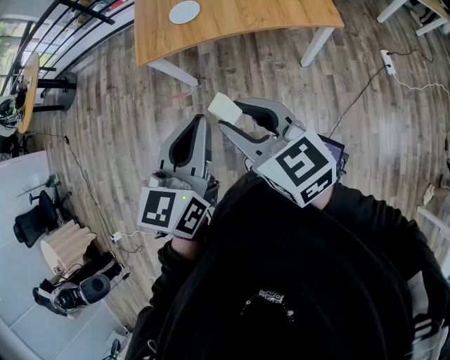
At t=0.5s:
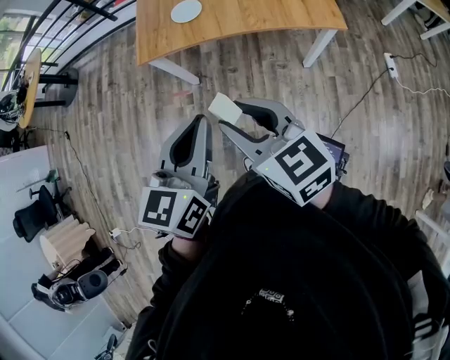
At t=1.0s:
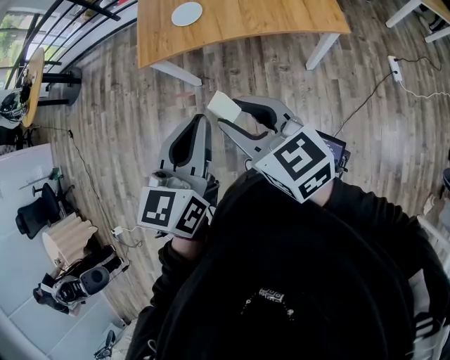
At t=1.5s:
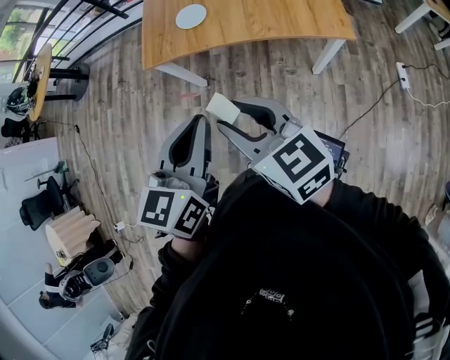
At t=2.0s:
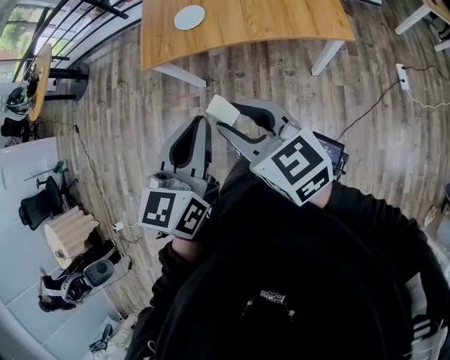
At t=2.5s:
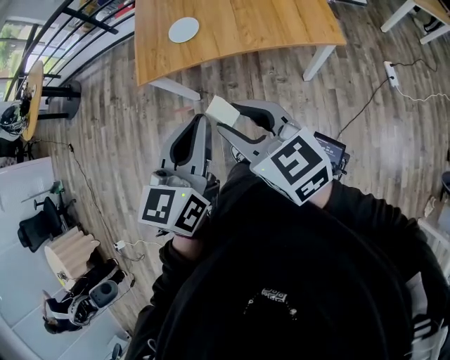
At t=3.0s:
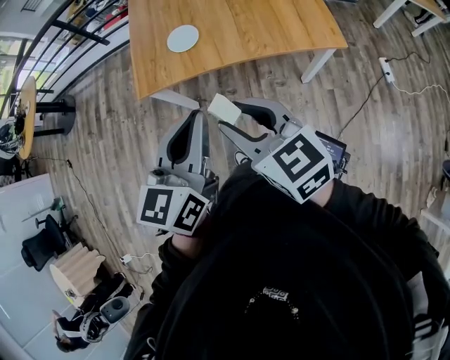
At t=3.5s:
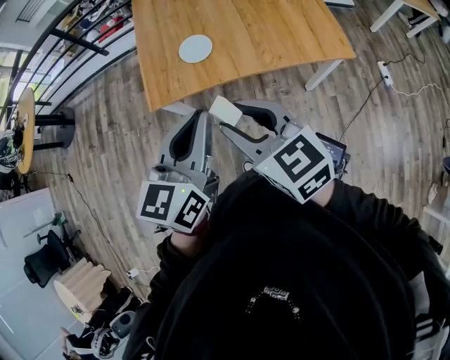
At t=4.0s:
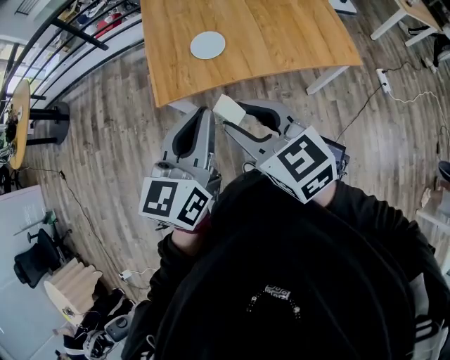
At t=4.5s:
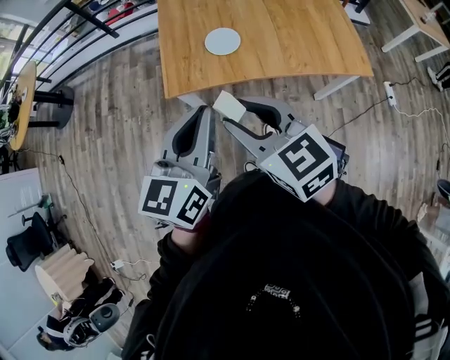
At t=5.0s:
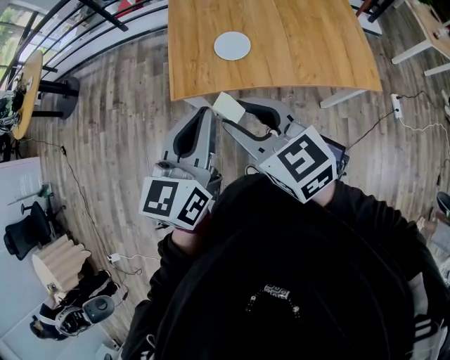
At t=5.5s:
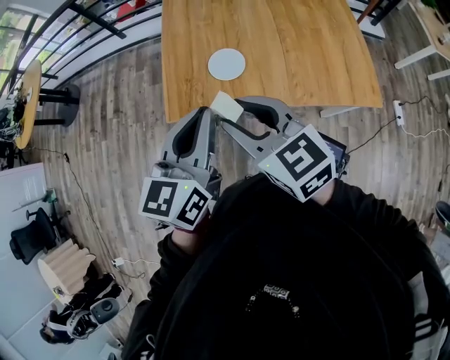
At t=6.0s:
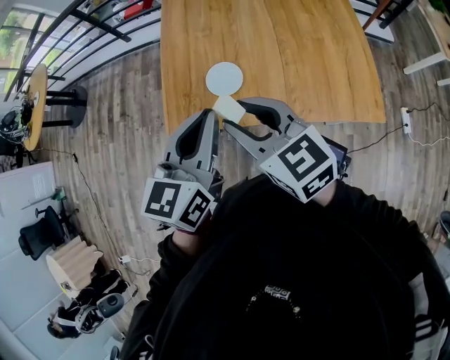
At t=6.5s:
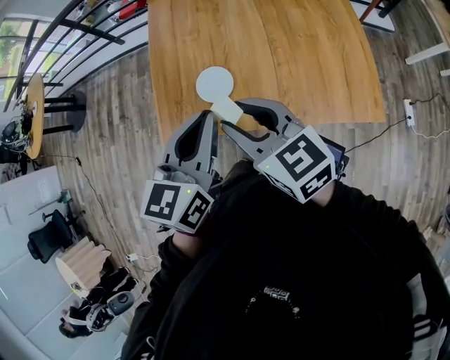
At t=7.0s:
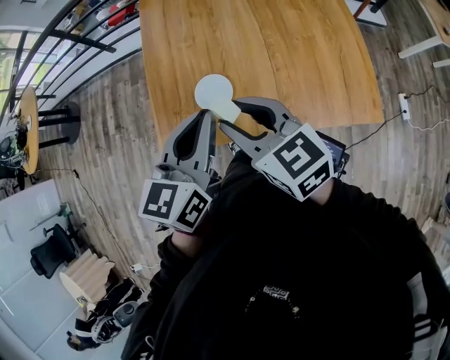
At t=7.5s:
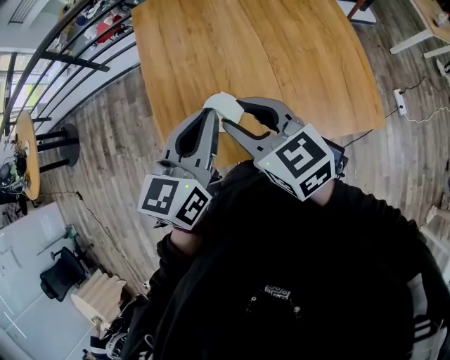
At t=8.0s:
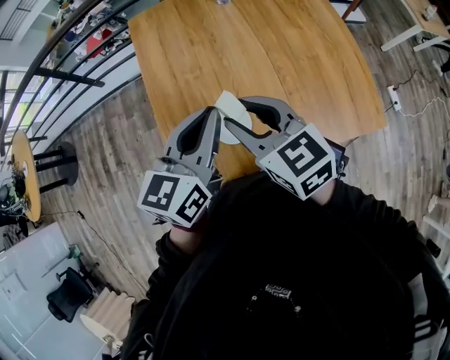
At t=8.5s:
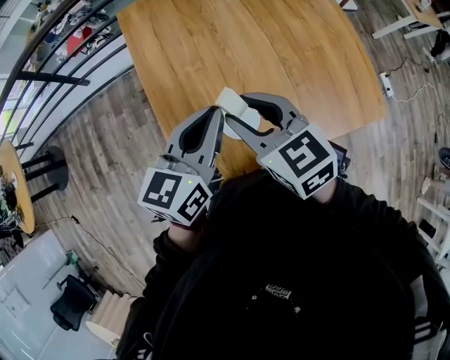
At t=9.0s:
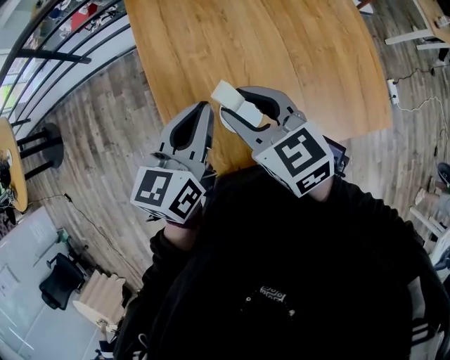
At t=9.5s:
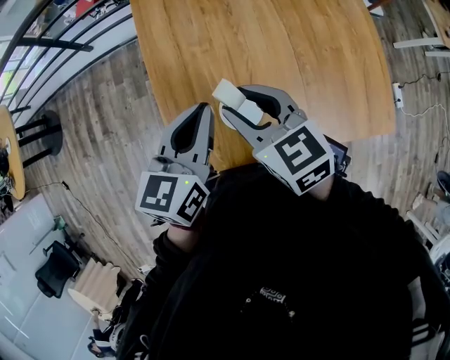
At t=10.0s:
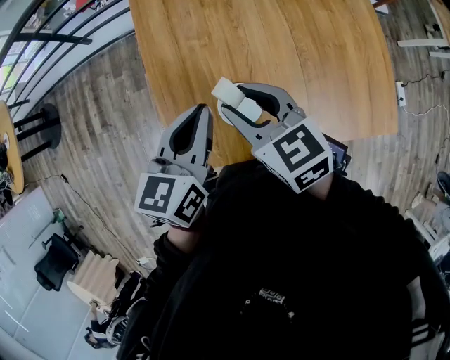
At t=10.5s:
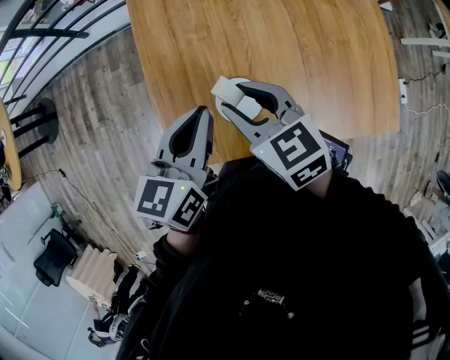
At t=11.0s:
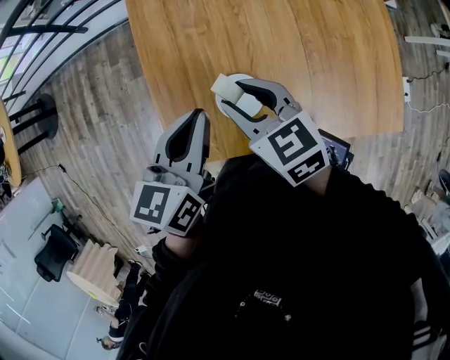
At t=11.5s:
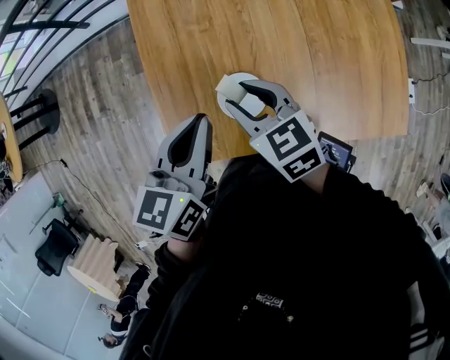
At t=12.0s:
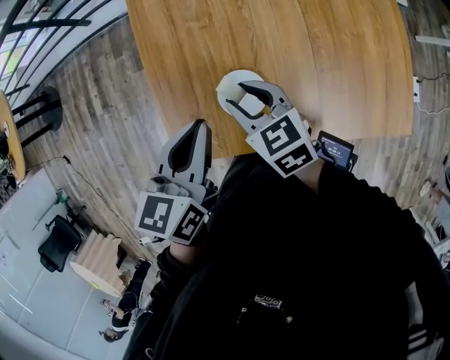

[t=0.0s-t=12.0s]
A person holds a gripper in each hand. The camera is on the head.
t=0.0s to t=2.0s: The two grippers go about 5 cm to the right.
t=2.0s to t=4.0s: Both grippers move forward and to the left, about 20 cm.
t=4.0s to t=6.0s: Both grippers move forward and to the right, roughly 20 cm.
t=6.0s to t=8.0s: Both grippers move forward, about 20 cm.
t=8.0s to t=10.0s: Both grippers travel together downward, roughly 5 cm.
t=10.0s to t=12.0s: The left gripper changes place by roughly 5 cm. Meanwhile the right gripper is displaced downward by some 10 cm.

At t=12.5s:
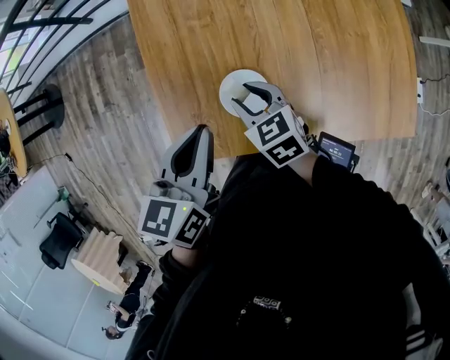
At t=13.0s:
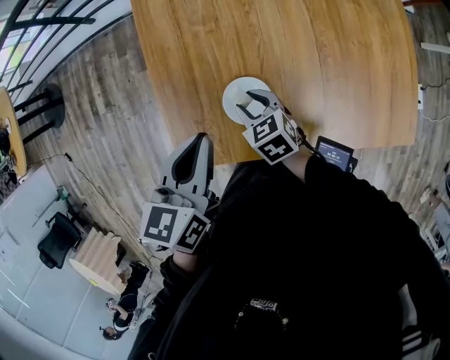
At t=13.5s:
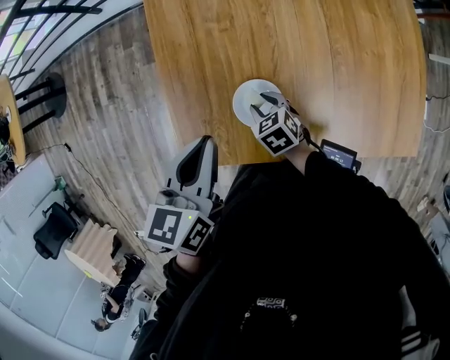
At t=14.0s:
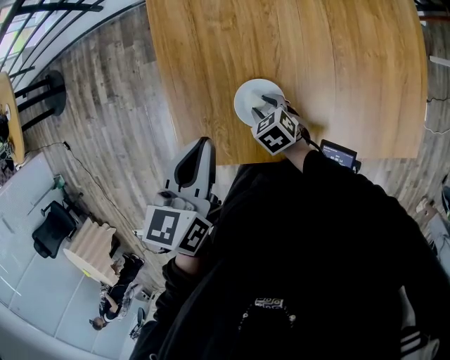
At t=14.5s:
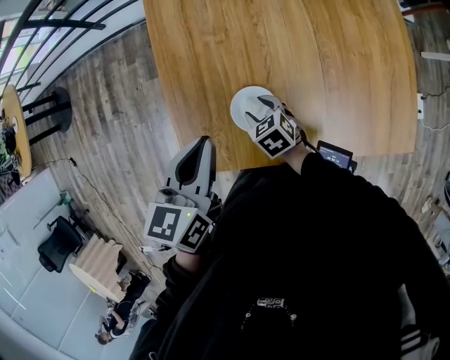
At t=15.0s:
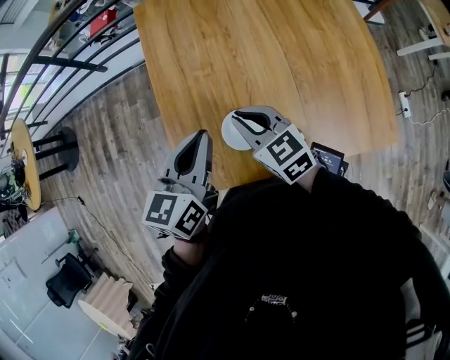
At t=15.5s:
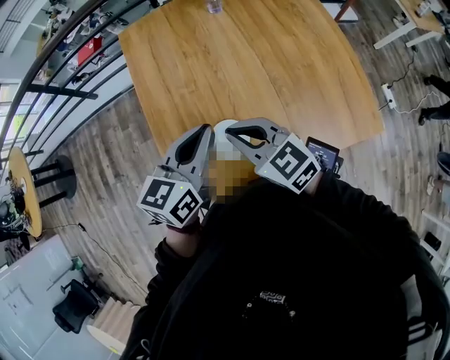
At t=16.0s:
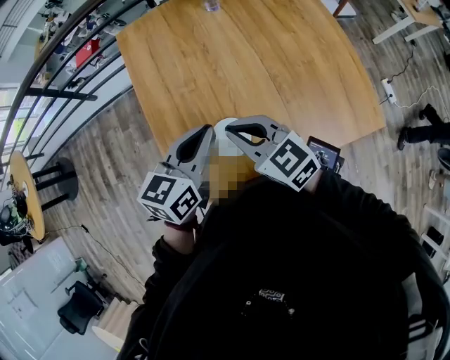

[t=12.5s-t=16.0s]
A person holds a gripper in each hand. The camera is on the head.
t=12.5s to t=14.5s: The right gripper moves downward, some 10 cm.
t=14.5s to t=16.0s: The left gripper is displaced to the right by approximately 10 cm, and changes its angle by about 30 degrees. Meanwhile the right gripper heads upward, covering about 25 cm, tips its fingers upward by about 40 degrees, and closes its fingers.

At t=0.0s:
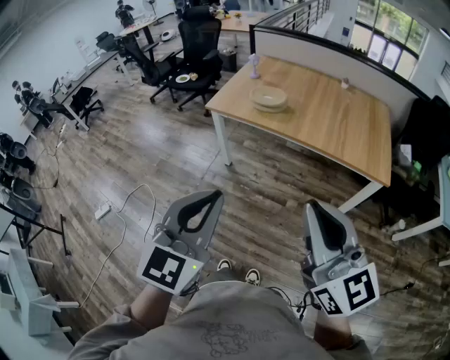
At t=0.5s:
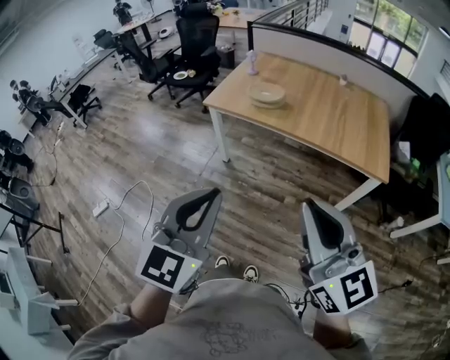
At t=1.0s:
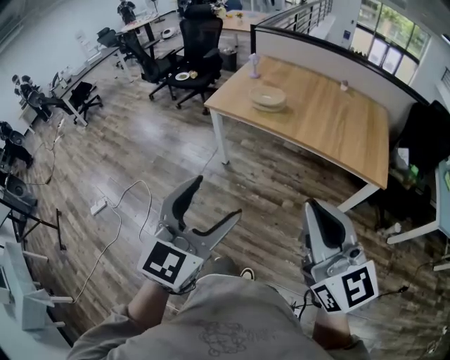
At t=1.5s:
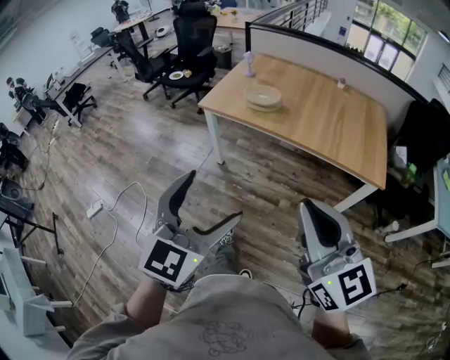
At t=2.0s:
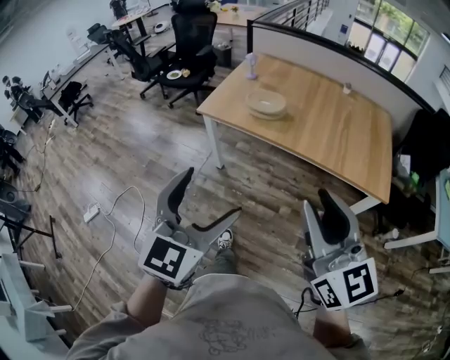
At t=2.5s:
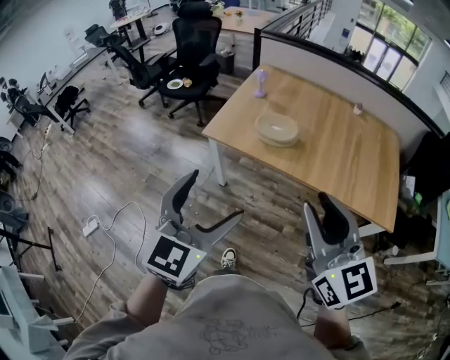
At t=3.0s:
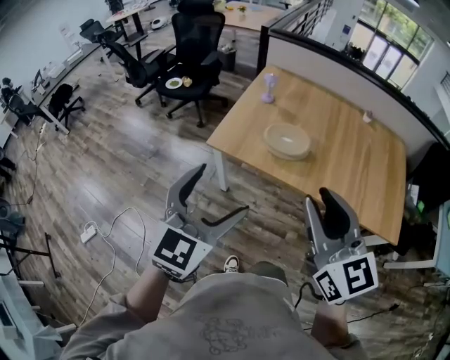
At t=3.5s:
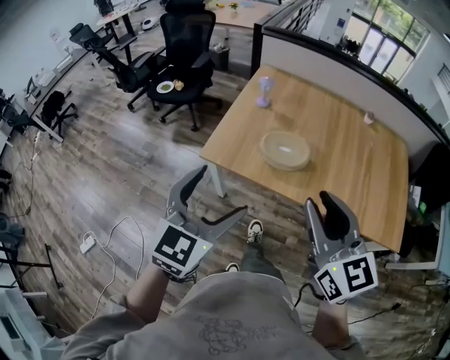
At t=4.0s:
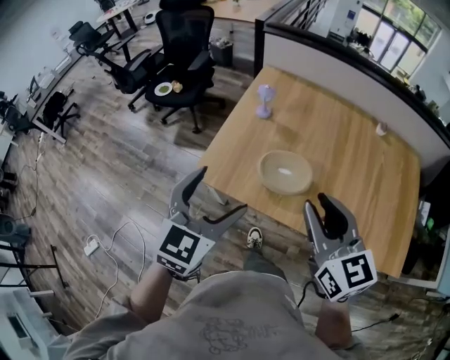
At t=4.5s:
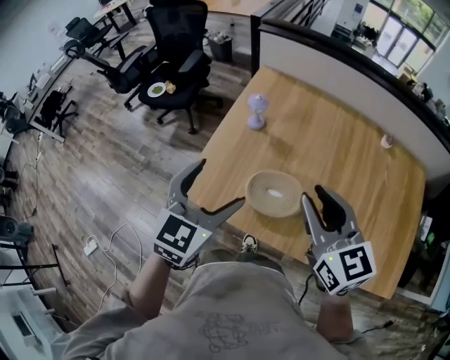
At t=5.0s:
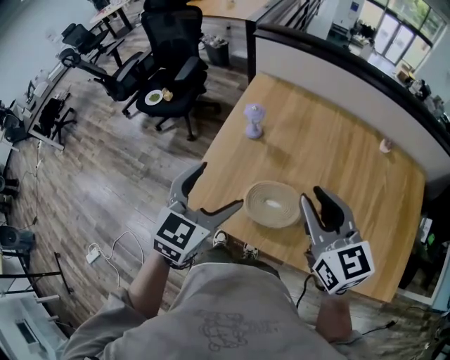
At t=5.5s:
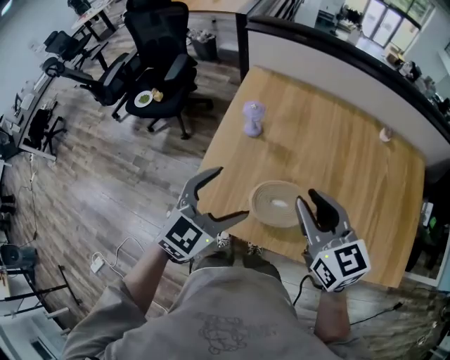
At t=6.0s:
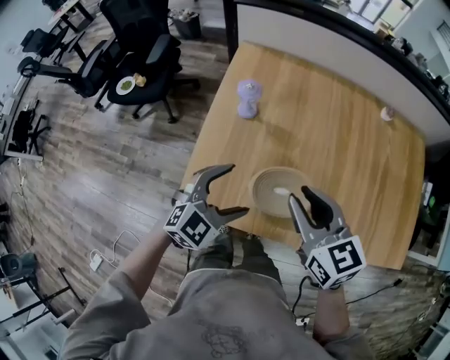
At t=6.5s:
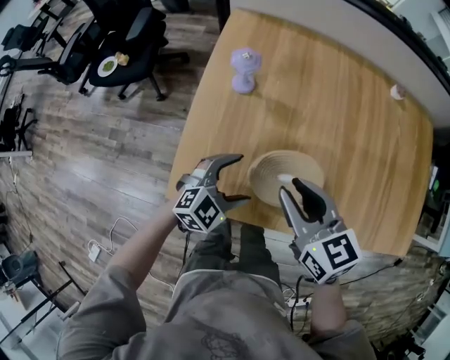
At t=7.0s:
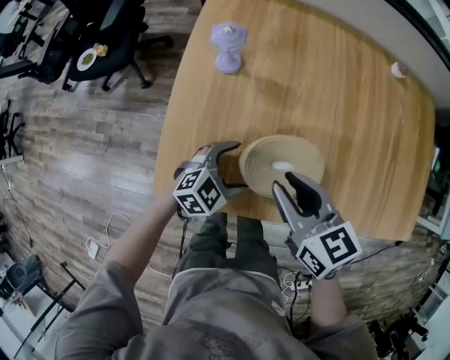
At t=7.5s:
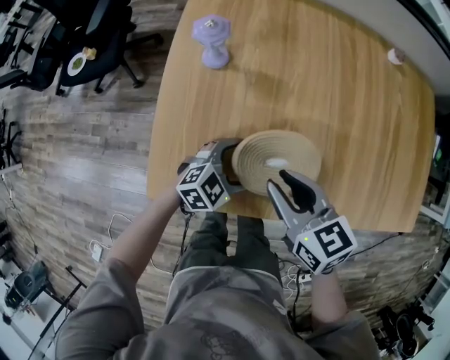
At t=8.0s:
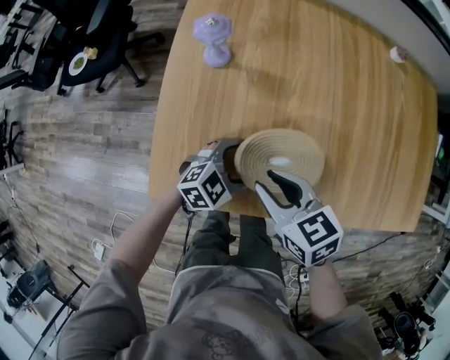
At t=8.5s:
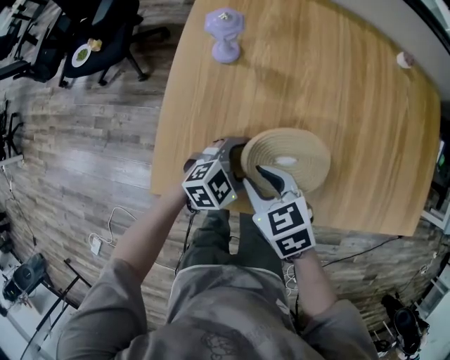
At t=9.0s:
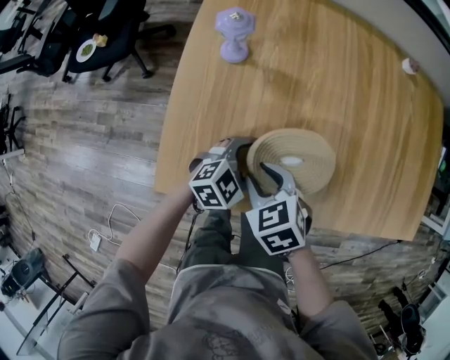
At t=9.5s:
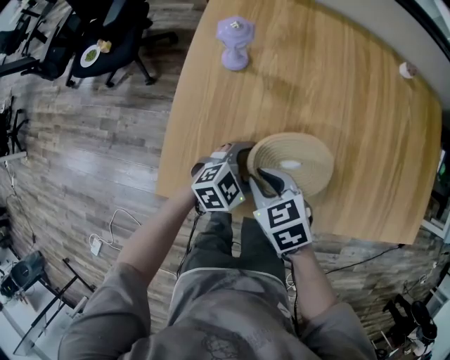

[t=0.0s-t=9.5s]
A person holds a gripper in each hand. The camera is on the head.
t=0.0s to t=2.0s: Both grippers travel together forward, roughly 15 cm. The left gripper opens up; the right gripper opens.
t=2.0s to t=4.0s: The pair of grippers is taken forward, about 50 cm.
t=4.0s to t=5.5s: Both grippers travel together forward, roughly 20 cm. The left gripper turns by approximately 20 degrees.
t=5.5s to t=7.5s: Both grippers travel together downward, roughly 25 cm. The left gripper rotates roughly 40 degrees, while the right gripper turns by approximately 20 degrees.
t=7.5s to t=9.5s: The right gripper is displaced downward and to the left by approximately 10 cm, and rotates some 20 degrees.

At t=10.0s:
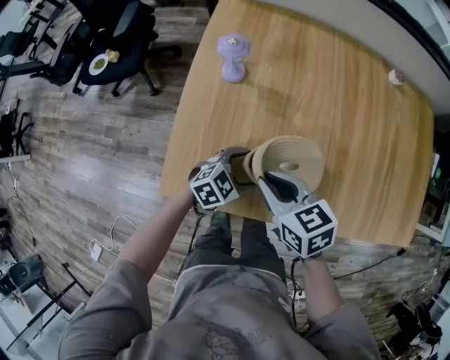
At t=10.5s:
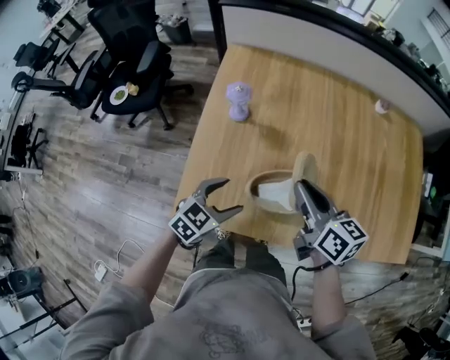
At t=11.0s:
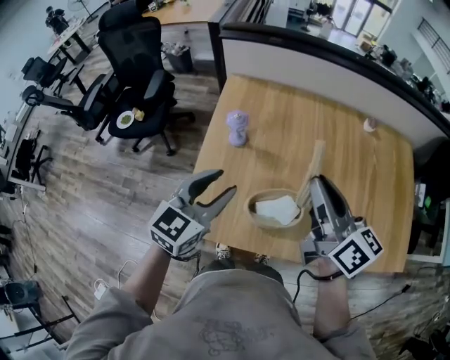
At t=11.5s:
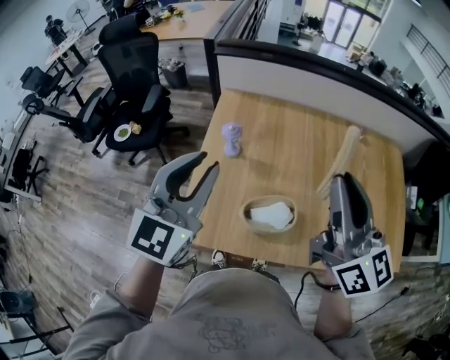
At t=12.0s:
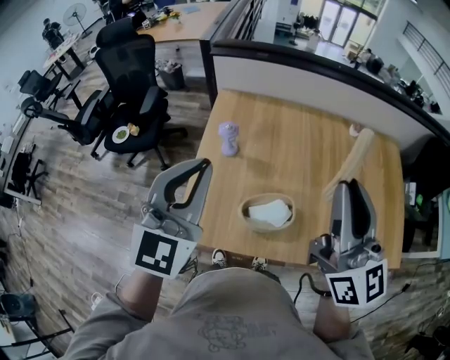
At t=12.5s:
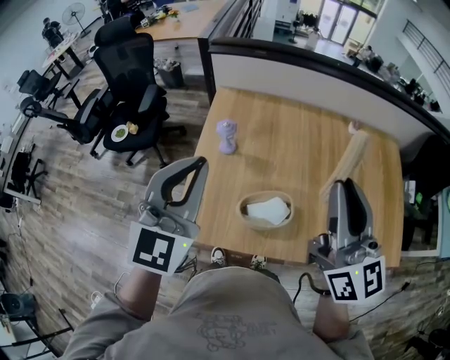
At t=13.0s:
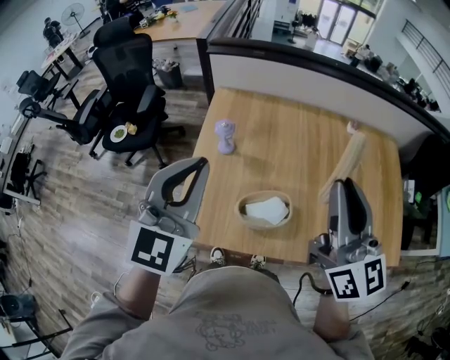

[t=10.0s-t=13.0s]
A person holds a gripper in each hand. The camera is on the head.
t=10.0s to t=11.5s: The grippers both shift upward by roughly 40 cm. The left gripper points its fingers roughly 40 degrees further upward, and closes up, while the right gripper angles its fingers upward, by roughly 50 degrees.
t=11.5s to t=13.0s: The grippers make only small movements.
